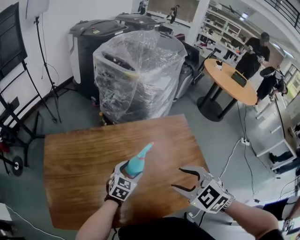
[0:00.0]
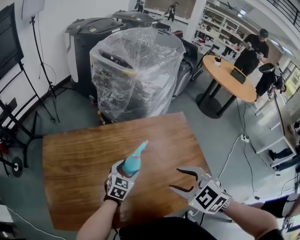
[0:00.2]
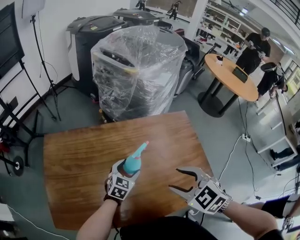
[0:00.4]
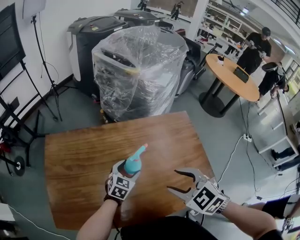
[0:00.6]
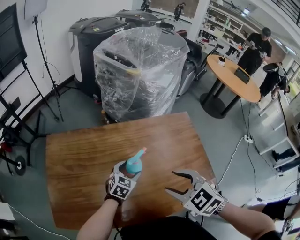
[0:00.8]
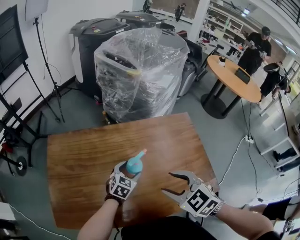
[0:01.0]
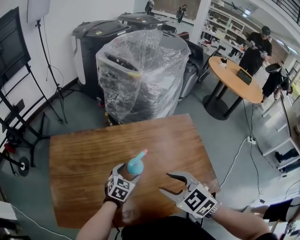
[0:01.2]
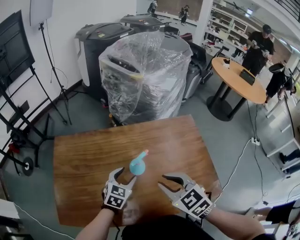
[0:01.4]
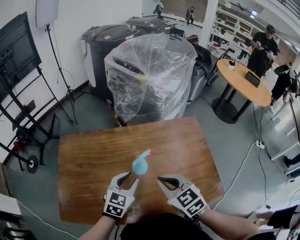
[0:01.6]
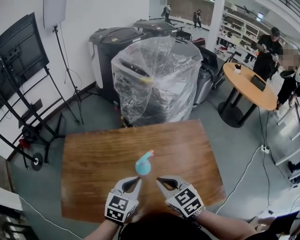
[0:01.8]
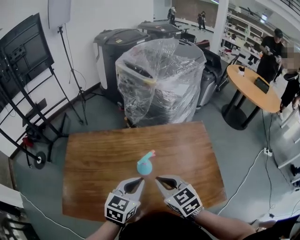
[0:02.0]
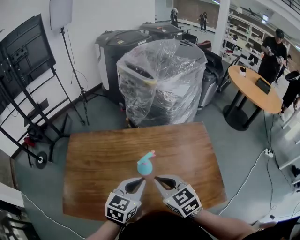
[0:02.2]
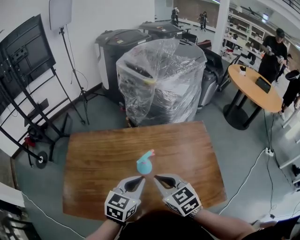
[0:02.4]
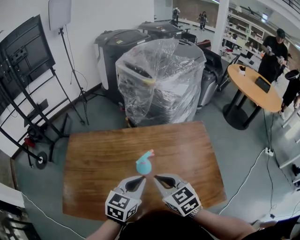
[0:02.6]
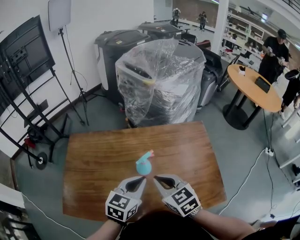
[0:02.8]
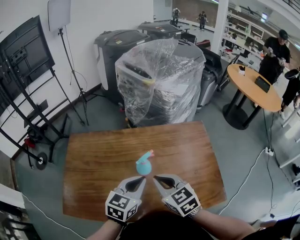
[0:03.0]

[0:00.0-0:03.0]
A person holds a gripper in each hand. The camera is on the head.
0:00.0 to 0:01.6: The right gripper is displaced to the left by about 5 cm, turns by about 20 degrees, and closes. The left gripper goes about 10 cm upward and backward, and closes up.
0:01.6 to 0:03.0: The left gripper shifts approximately 5 cm upward.

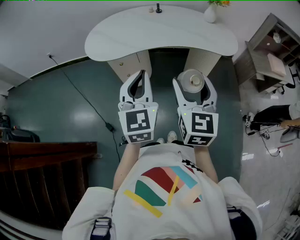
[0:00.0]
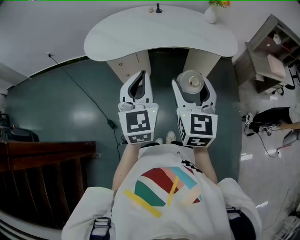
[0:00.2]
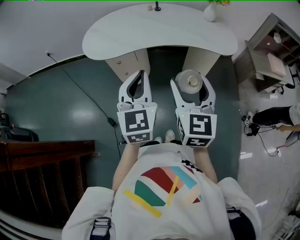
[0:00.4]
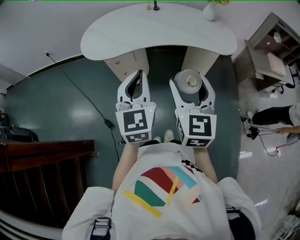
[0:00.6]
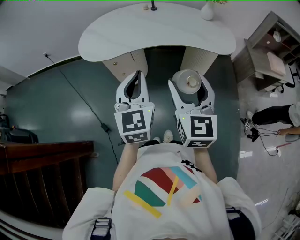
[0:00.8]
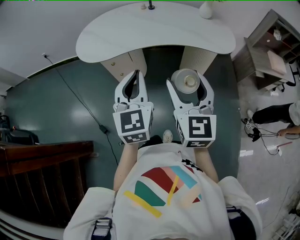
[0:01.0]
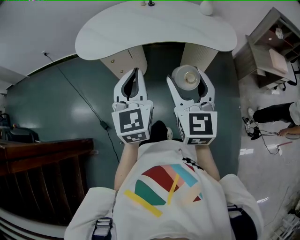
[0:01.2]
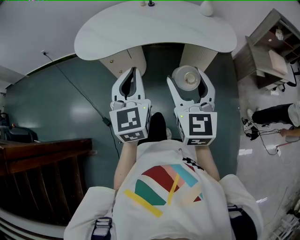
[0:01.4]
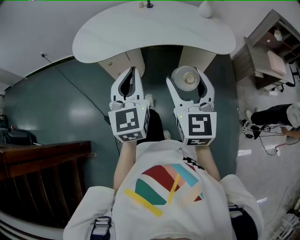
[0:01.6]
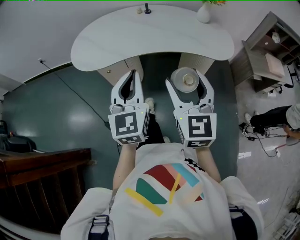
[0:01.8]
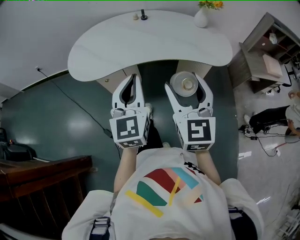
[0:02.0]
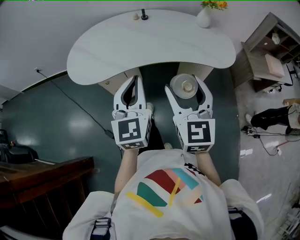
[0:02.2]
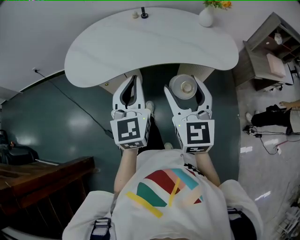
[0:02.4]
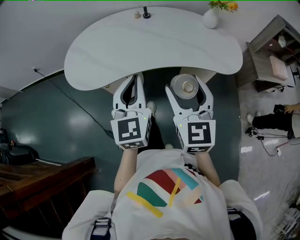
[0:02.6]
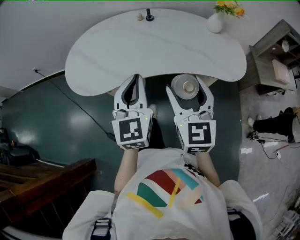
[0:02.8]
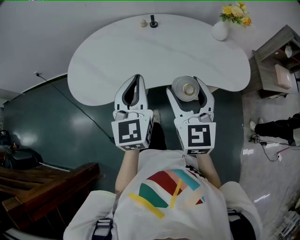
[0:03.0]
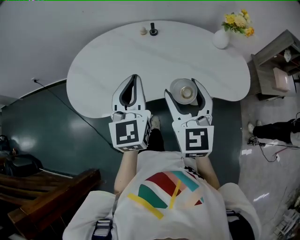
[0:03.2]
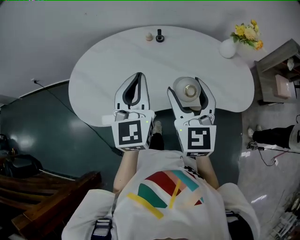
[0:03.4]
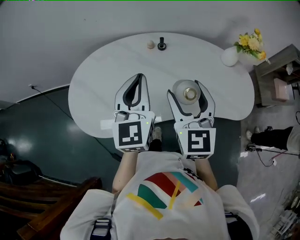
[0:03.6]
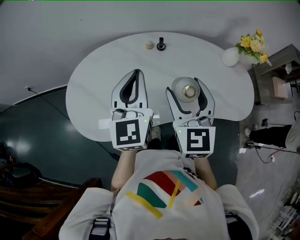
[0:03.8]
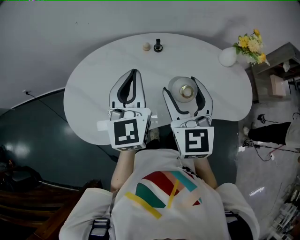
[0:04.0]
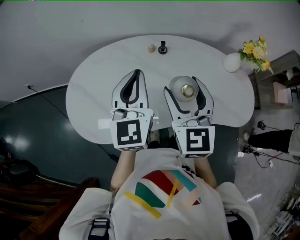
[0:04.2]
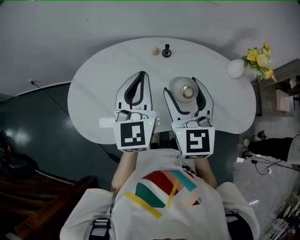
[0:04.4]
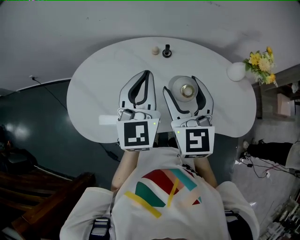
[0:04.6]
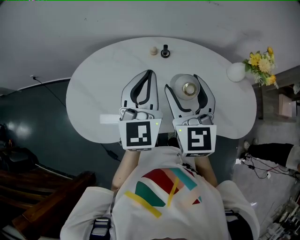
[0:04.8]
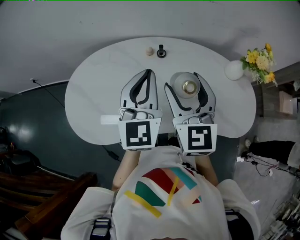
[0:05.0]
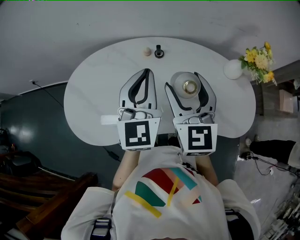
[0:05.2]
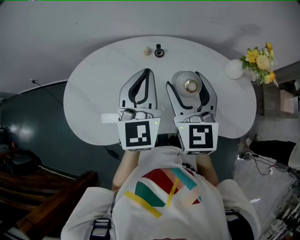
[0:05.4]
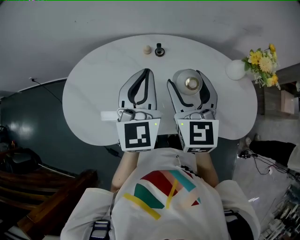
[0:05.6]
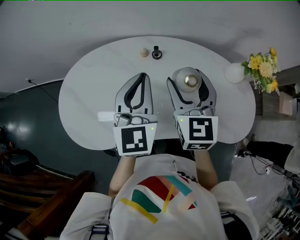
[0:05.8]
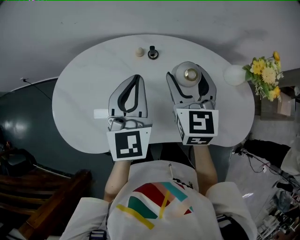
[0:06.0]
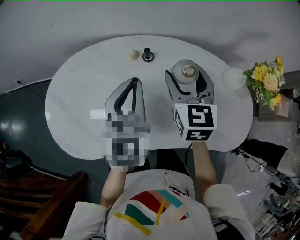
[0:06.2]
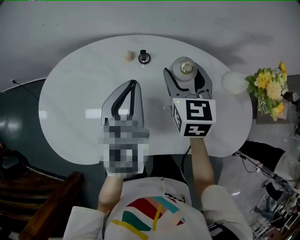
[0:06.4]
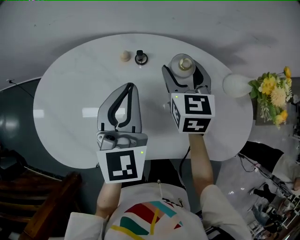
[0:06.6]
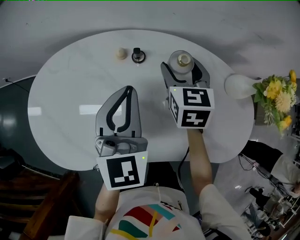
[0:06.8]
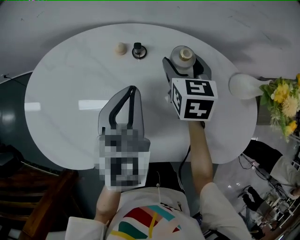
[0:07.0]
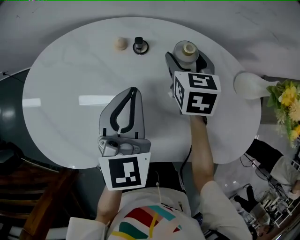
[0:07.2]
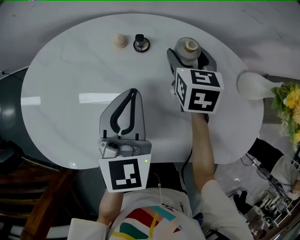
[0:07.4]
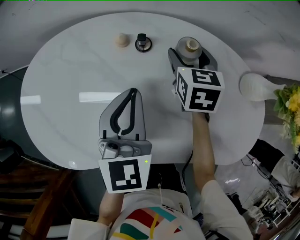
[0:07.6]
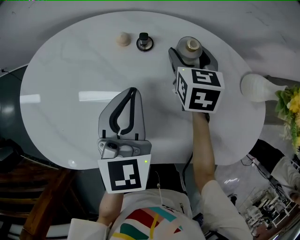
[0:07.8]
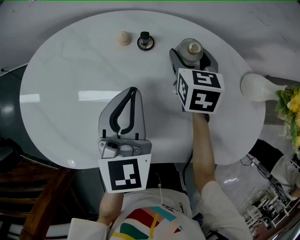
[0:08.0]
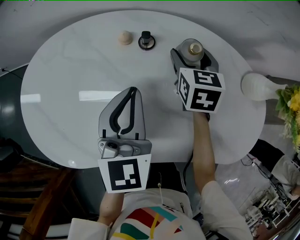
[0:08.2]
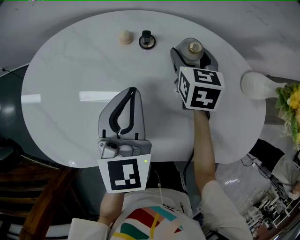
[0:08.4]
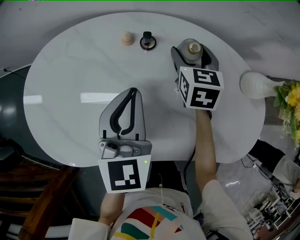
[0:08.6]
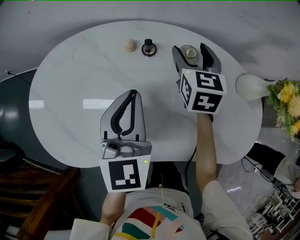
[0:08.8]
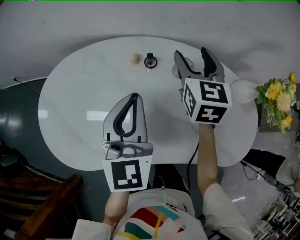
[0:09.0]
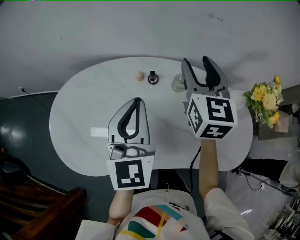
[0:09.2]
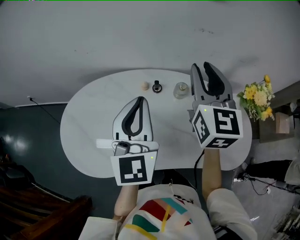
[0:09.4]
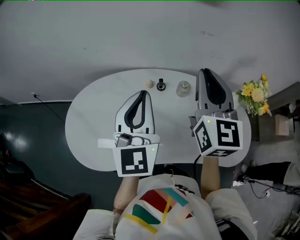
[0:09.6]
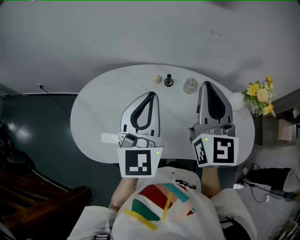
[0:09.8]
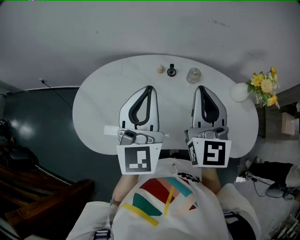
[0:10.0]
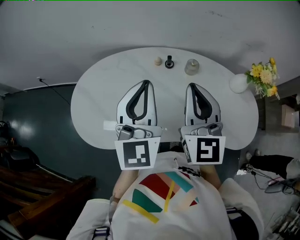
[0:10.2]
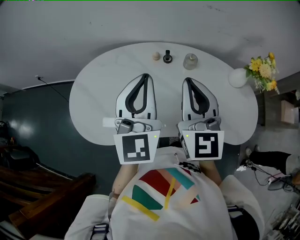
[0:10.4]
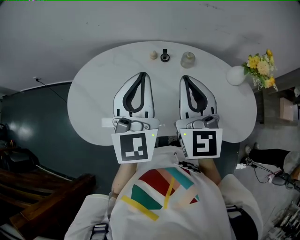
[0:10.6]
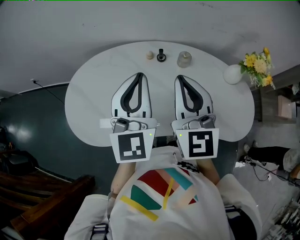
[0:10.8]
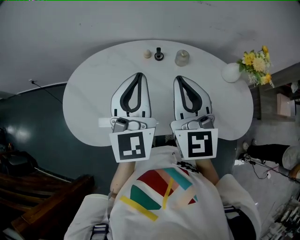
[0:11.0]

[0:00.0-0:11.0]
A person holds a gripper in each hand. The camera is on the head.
0:00.0 to 0:01.6: The left gripper moves forward, some 5 cm. Meanwhile the right gripper changes place by approximately 5 cm.
0:01.6 to 0:03.2: The two grippers go approximately 30 cm forward.
0:03.2 to 0:04.8: The two grippers go some 20 cm forward.
0:04.8 to 0:06.2: The left gripper travels forward and downward by about 10 cm. Meanwhile the right gripper travels forward, downward and to the right by roughly 20 cm.
0:06.2 to 0:07.8: The left gripper heads downward, covering some 15 cm. Meanwhile the right gripper is displaced downward and forward by roughly 20 cm.
0:07.8 to 0:09.4: The right gripper moves upward, about 35 cm, tips its fingers upward by some 40 degrees, and closes up. Meanwhile the left gripper heads upward, covering some 20 cm, and rotates roughly 20 degrees.
0:09.4 to 0:11.0: The left gripper moves backward, approximately 5 cm. Meanwhile the right gripper shifts about 15 cm backward and to the left, and closes its fingers.

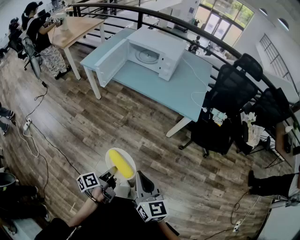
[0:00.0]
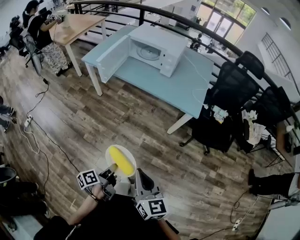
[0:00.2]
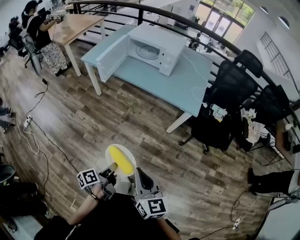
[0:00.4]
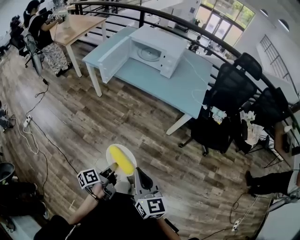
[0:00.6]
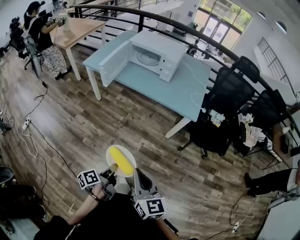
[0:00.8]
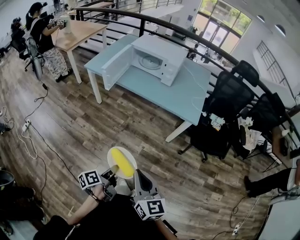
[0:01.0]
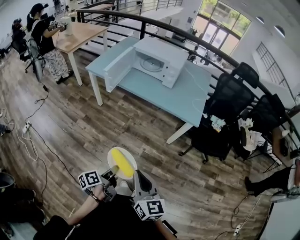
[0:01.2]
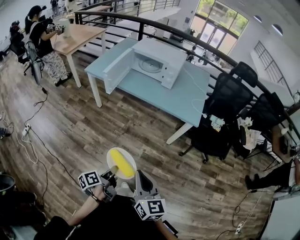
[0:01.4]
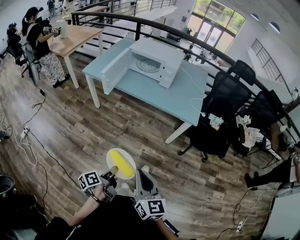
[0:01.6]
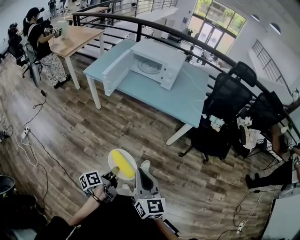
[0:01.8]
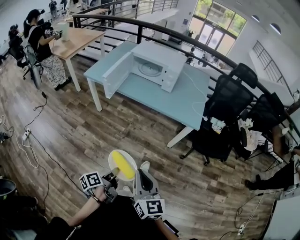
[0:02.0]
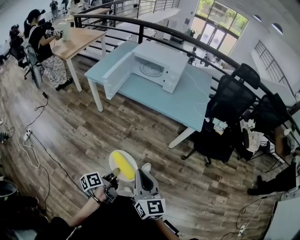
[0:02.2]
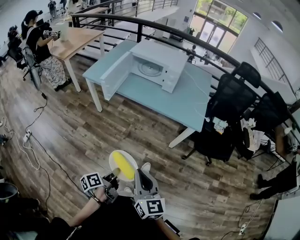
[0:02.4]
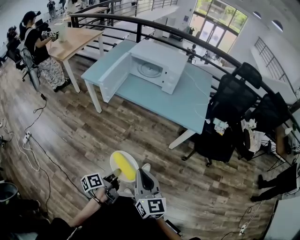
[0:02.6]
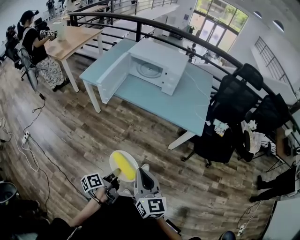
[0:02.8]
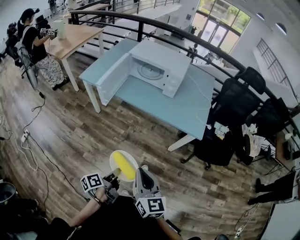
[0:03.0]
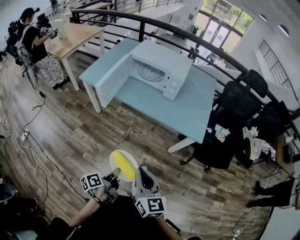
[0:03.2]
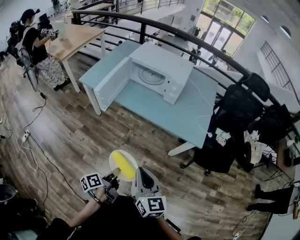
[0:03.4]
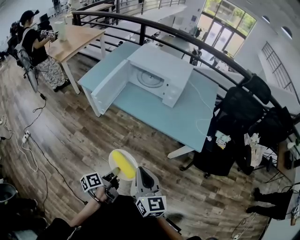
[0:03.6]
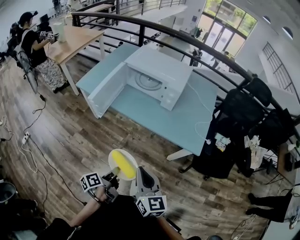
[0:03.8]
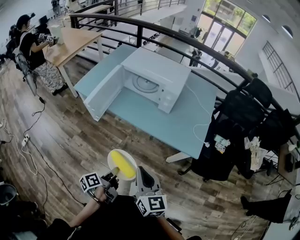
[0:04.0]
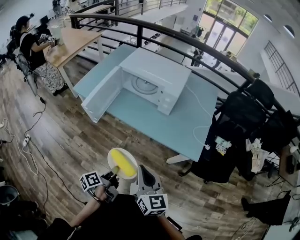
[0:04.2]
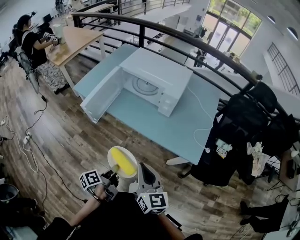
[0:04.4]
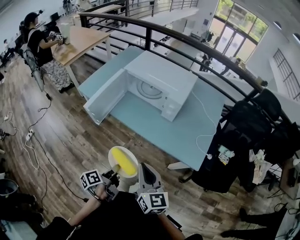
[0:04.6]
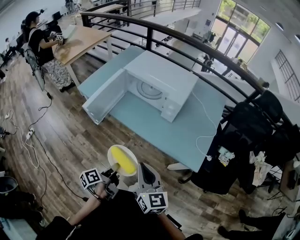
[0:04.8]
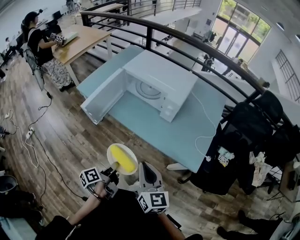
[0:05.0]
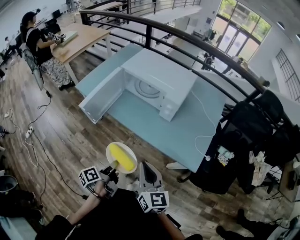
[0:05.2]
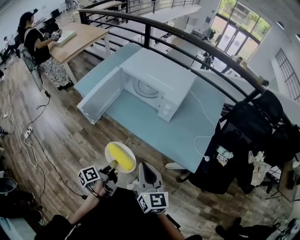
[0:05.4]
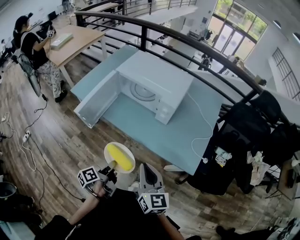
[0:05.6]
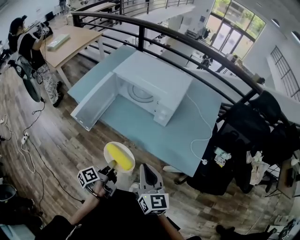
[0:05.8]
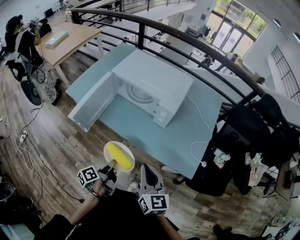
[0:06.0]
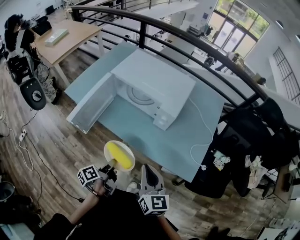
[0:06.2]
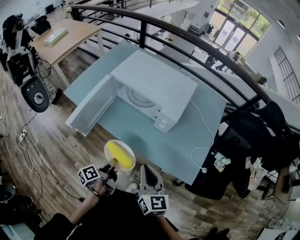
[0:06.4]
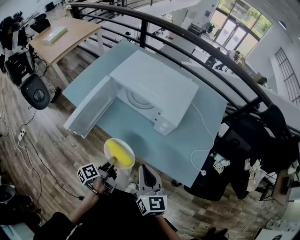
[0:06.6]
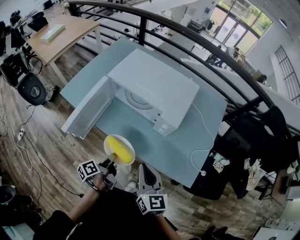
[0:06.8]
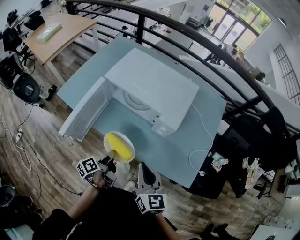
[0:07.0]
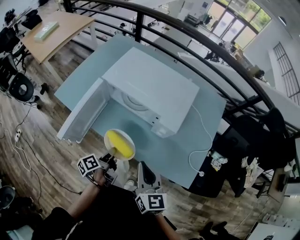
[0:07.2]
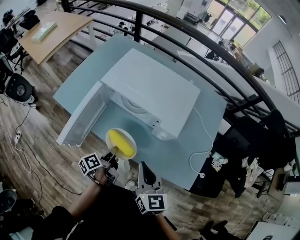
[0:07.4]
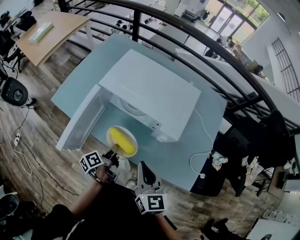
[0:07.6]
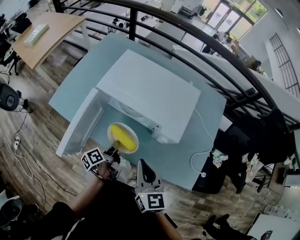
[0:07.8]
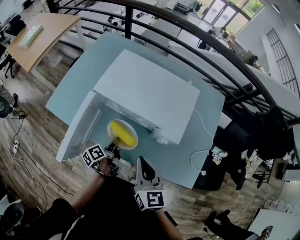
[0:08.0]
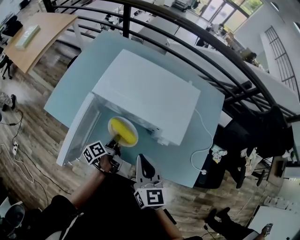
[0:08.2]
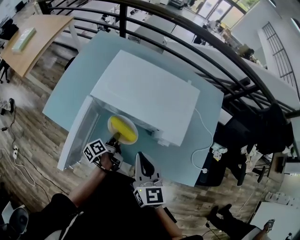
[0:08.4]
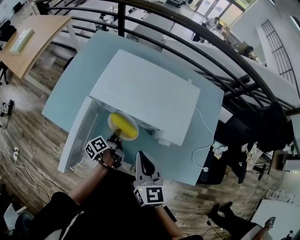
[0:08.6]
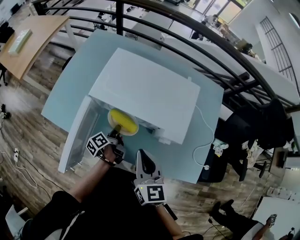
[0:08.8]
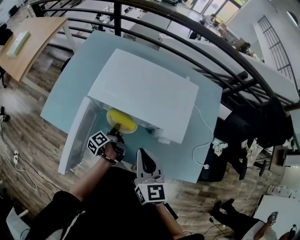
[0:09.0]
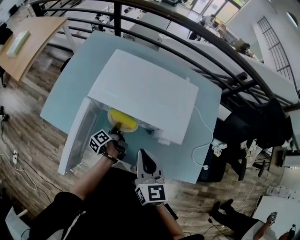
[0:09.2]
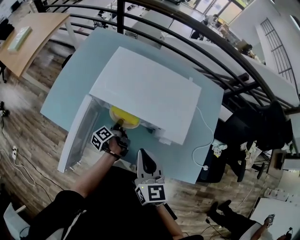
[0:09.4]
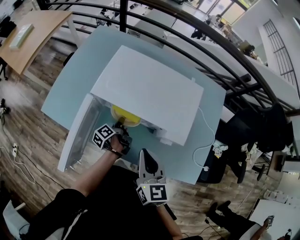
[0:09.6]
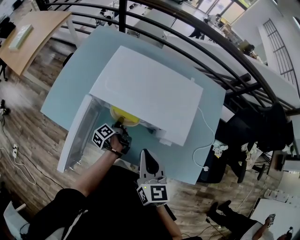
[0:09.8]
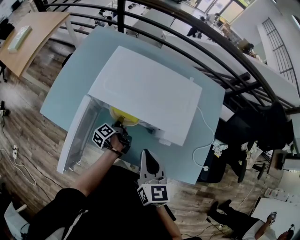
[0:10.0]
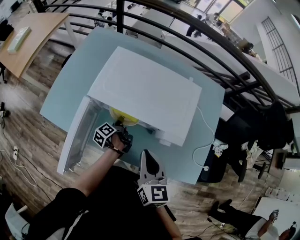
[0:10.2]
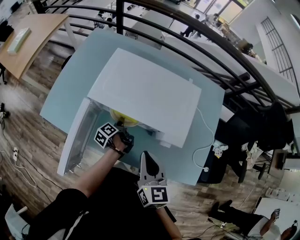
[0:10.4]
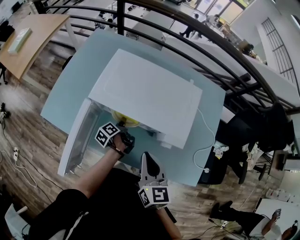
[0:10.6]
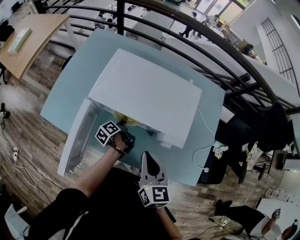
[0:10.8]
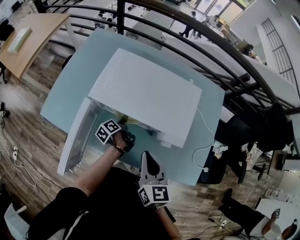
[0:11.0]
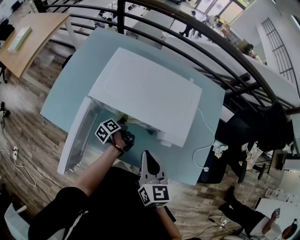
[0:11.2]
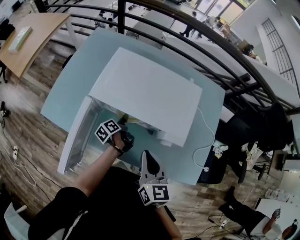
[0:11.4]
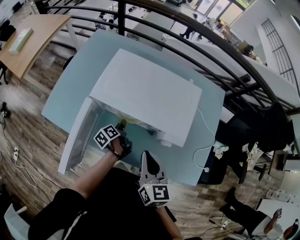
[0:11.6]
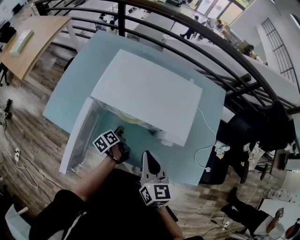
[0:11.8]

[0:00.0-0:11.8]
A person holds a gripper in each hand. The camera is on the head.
0:00.0 to 0:01.4: The right gripper shifts by approximately 5 cm.
0:01.4 to 0:03.0: The right gripper shifts by about 15 cm.
0:03.0 to 0:04.4: The right gripper changes place by about 20 cm.
0:04.4 to 0:06.0: The right gripper changes place by approximately 10 cm.
0:06.0 to 0:07.4: The right gripper changes place by roughly 15 cm.
0:07.4 to 0:08.8: The right gripper moves some 10 cm.
